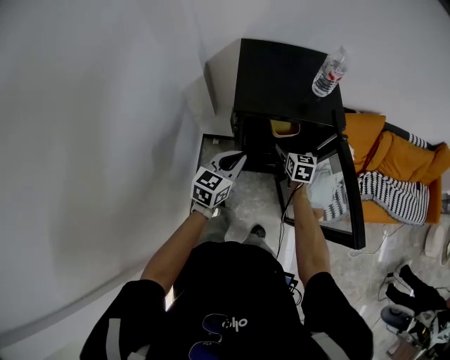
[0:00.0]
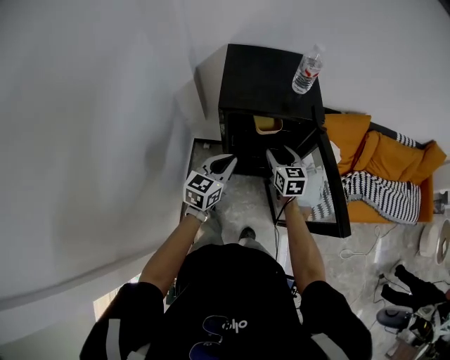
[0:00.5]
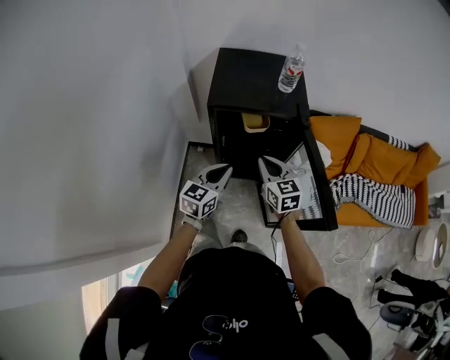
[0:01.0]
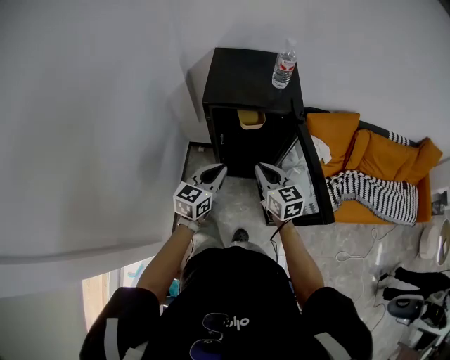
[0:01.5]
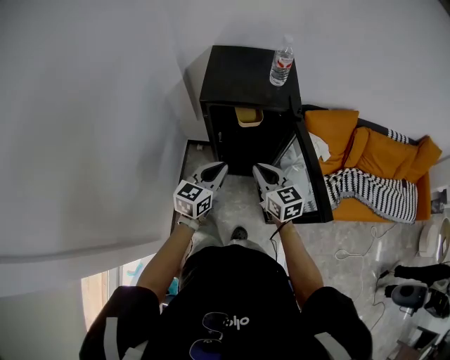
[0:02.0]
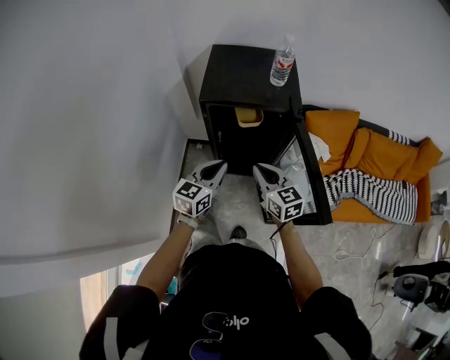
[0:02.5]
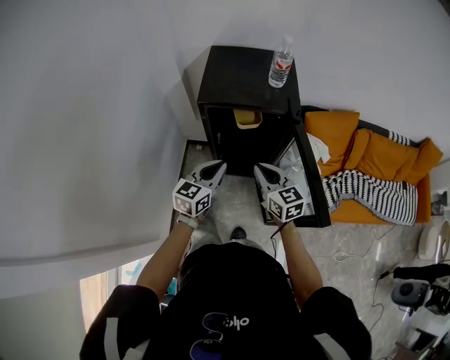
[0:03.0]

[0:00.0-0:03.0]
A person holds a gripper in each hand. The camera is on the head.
0:00.0 to 0:01.5: The right gripper goes some 25 cm backward and upward, swivels approximately 30 degrees, and closes its fingers. The left gripper travels backward and to the right by roughly 15 cm.
0:01.5 to 0:03.0: The grippers make only small movements.

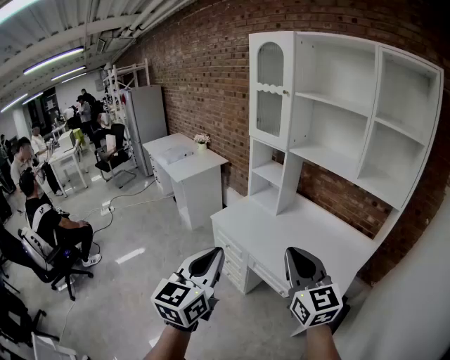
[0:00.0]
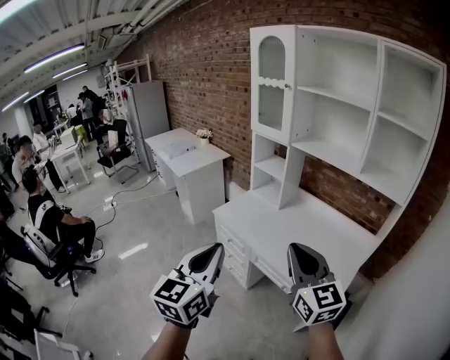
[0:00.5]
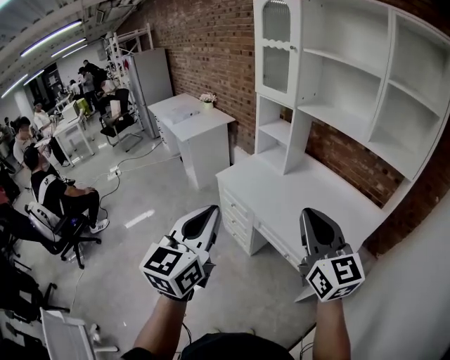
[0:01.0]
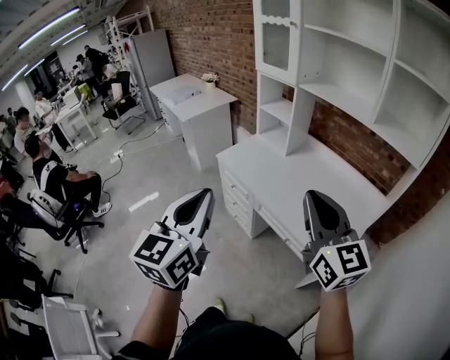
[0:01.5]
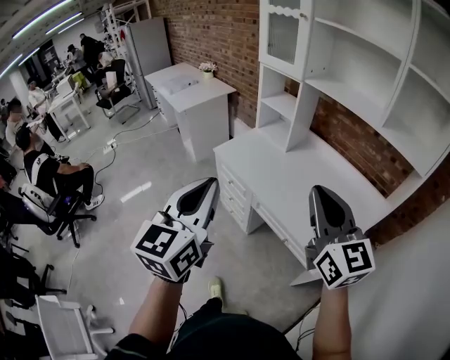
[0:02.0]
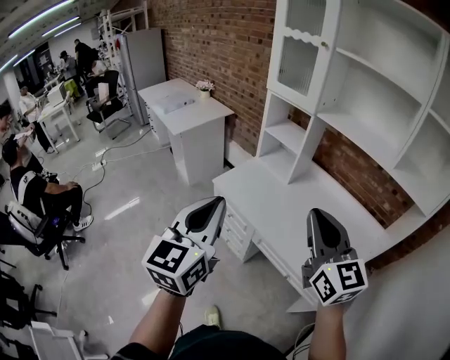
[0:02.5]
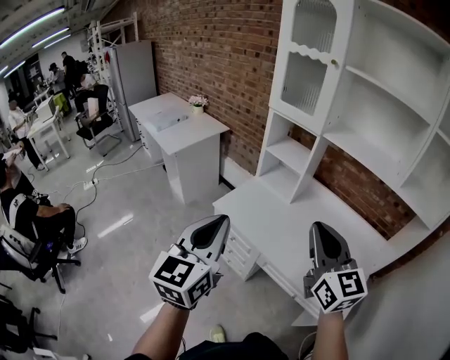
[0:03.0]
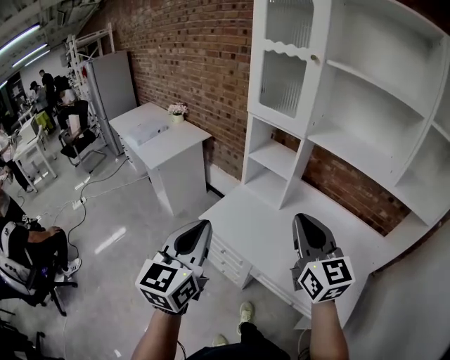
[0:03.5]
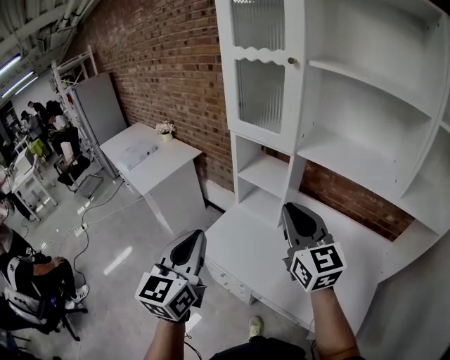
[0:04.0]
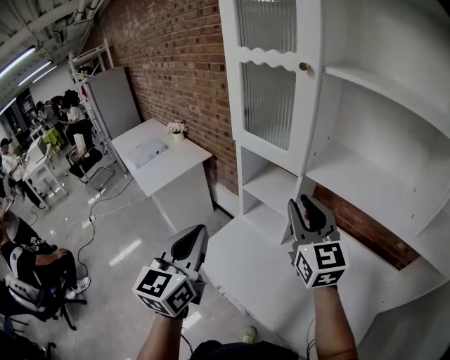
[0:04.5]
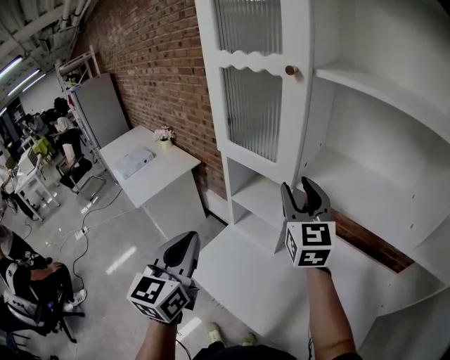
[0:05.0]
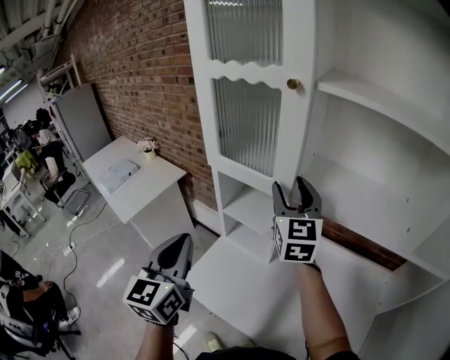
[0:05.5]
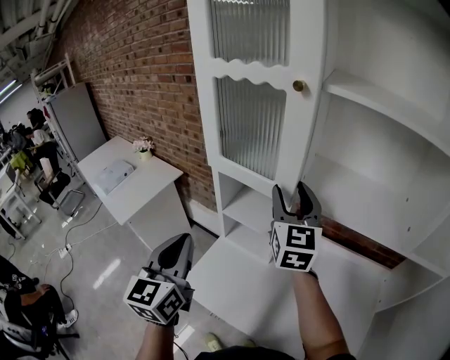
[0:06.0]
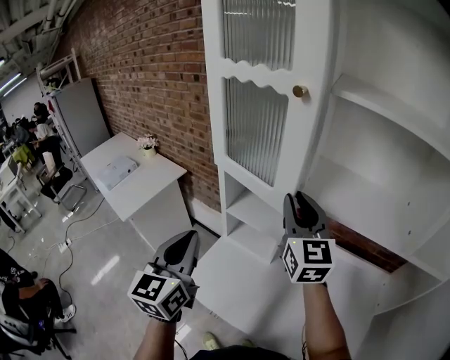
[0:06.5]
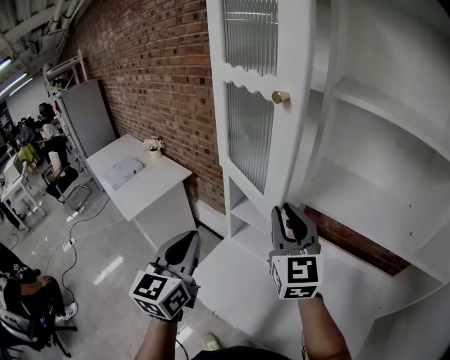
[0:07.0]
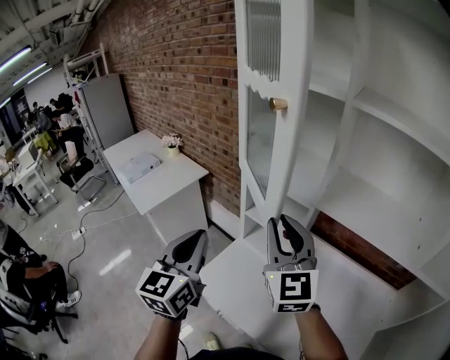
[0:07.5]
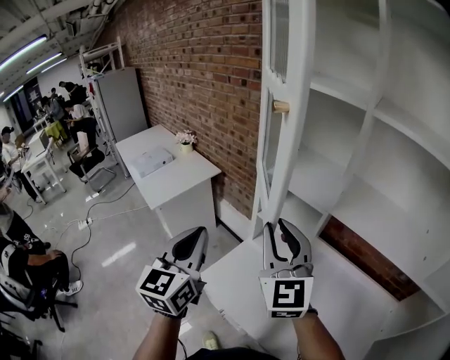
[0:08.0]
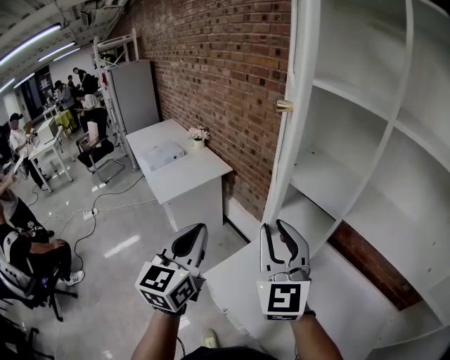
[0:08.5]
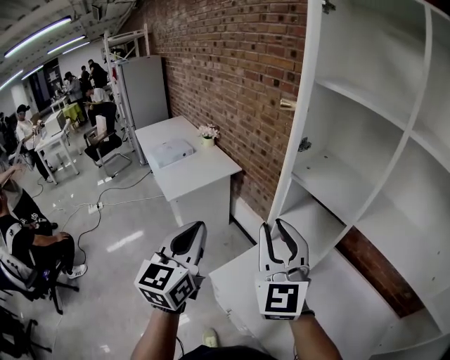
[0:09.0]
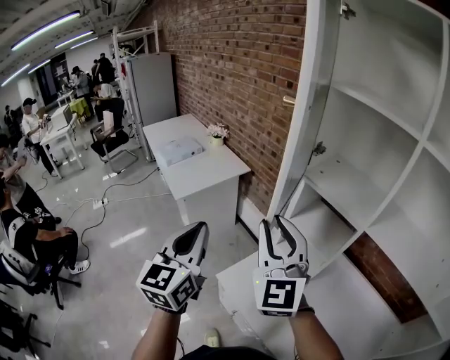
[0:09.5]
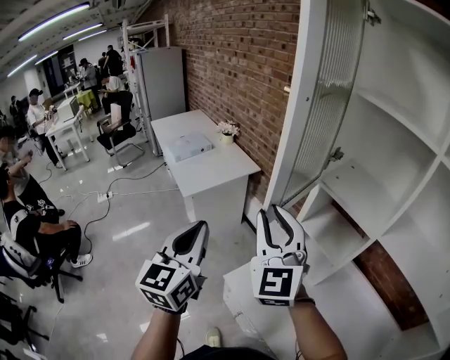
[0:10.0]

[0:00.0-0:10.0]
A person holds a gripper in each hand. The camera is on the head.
0:00.0 to 0:02.0: The right gripper changes place by about 5 cm.
0:02.0 to 0:04.0: Both grippers move forward, roughly 35 cm.
0:04.0 to 0:06.0: Both grippers move forward, some 25 cm. The right gripper turns by roughly 20 degrees, and opens up.
0:06.0 to 0:08.0: The right gripper moves to the left and backward, about 20 cm, changes its angle by some 20 degrees, and closes its fingers, while the left gripper heads to the left, covering about 5 cm.
0:08.0 to 0:10.0: Both grippers move to the left, roughly 15 cm.

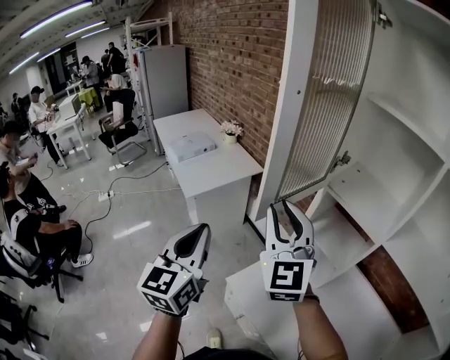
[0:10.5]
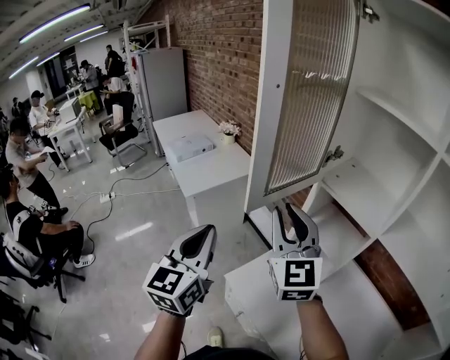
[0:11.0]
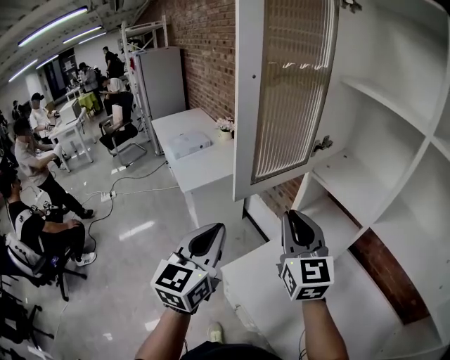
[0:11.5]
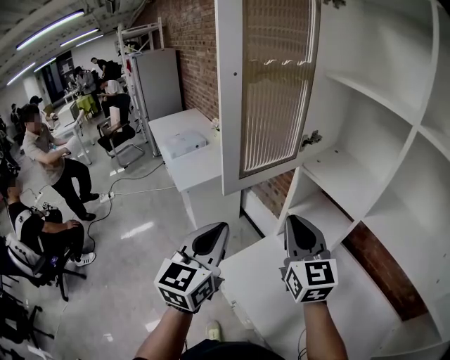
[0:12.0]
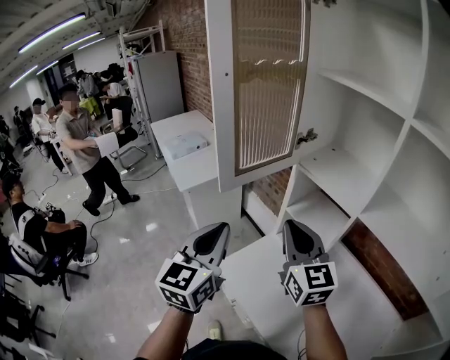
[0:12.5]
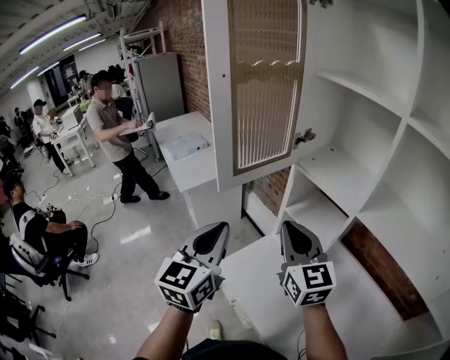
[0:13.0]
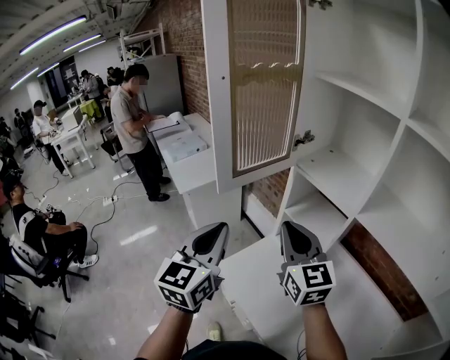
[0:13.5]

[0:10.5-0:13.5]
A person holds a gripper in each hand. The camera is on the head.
0:10.5 to 0:12.0: The right gripper is displaced to the right and backward by approximately 15 cm, and swivels approximately 20 degrees. Meanwhile the left gripper heads to the right, covering some 10 cm.
0:12.0 to 0:13.5: There are only small adjustments of the grippers.

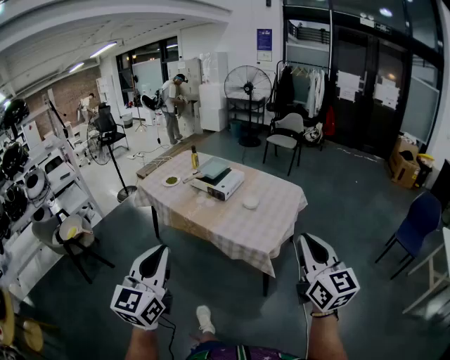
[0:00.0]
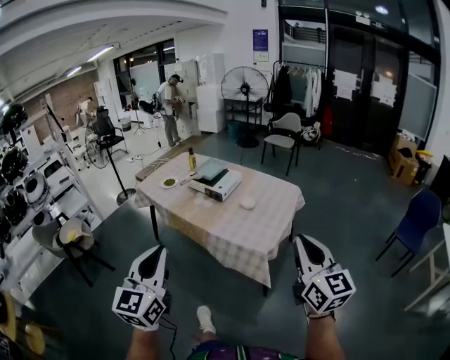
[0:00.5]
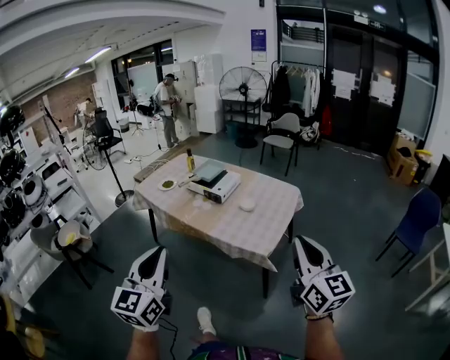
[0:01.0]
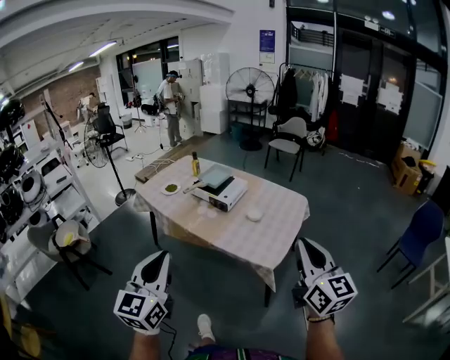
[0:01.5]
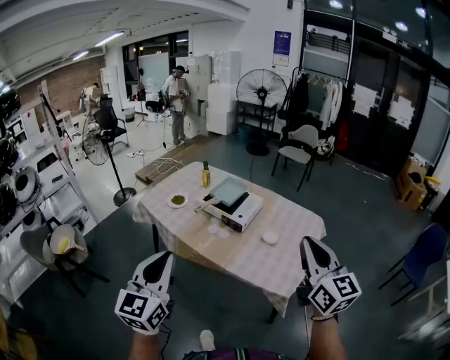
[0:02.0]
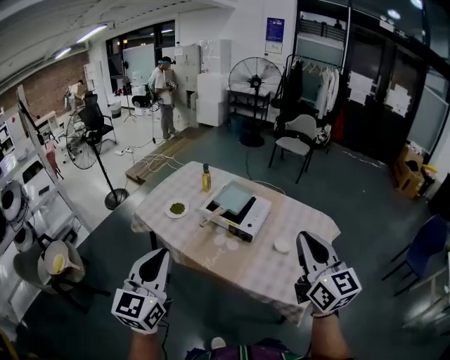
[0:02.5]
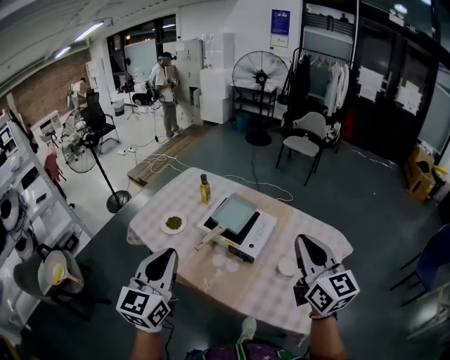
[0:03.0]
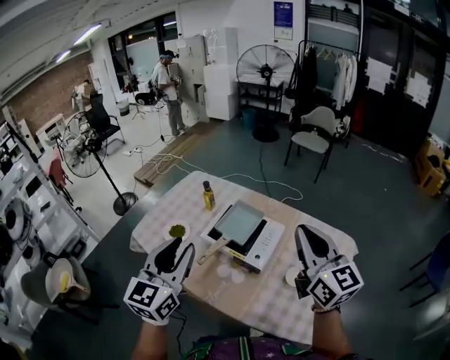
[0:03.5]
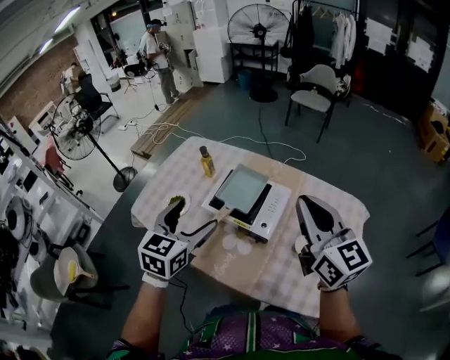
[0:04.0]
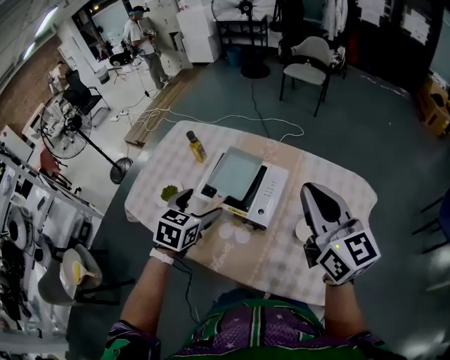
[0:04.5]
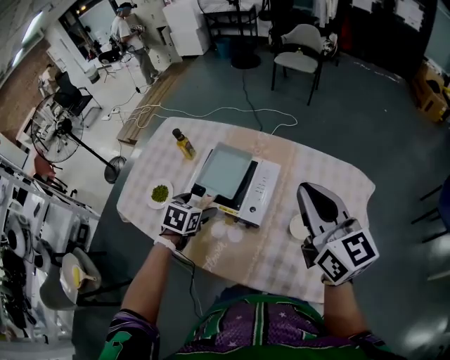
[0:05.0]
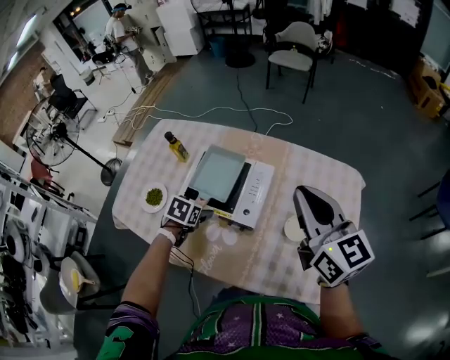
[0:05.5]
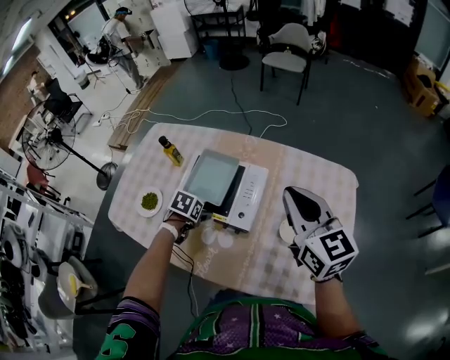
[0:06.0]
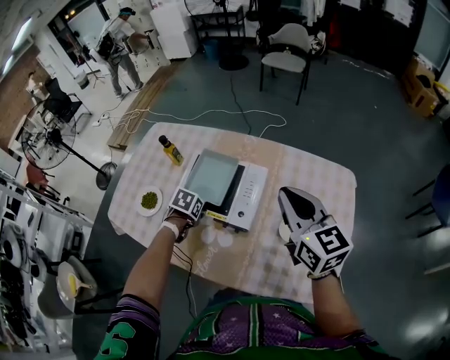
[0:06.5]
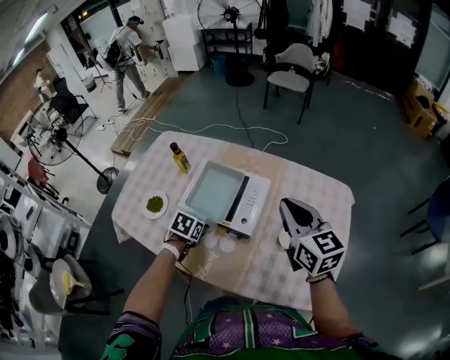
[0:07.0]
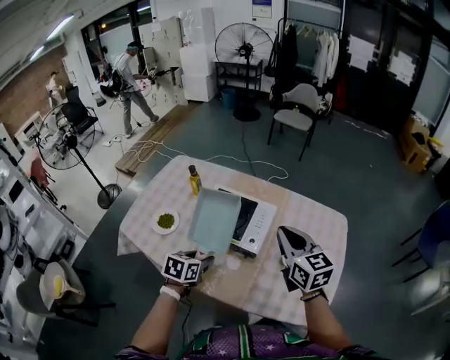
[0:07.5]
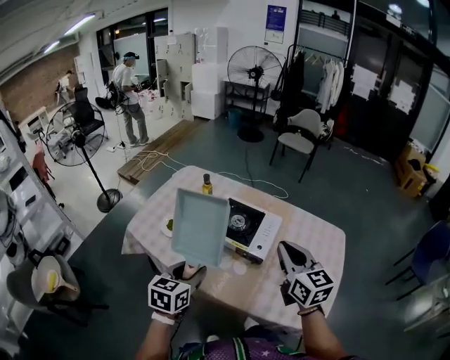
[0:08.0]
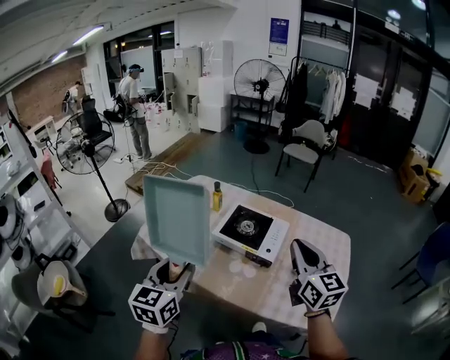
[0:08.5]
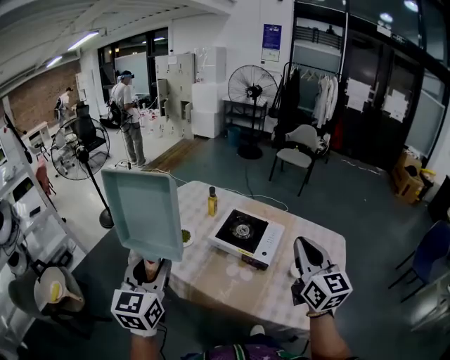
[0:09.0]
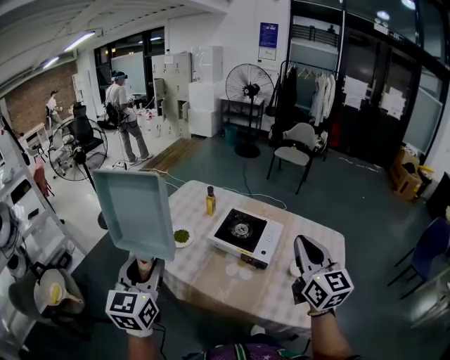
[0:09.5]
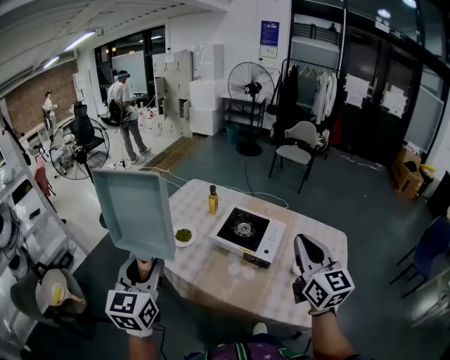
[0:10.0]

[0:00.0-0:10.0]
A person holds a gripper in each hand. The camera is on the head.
0:00.0 to 0:02.0: Both grippers travel together forward and to the left, about 30 cm.
0:02.0 to 0:04.0: The pair of grippers is taken forward, roughly 50 cm. The left gripper changes its angle by approximately 30 degrees, and opens its fingers.
0:04.0 to 0:06.0: The left gripper is displaced downward and forward by about 35 cm, and angles its fingers downward, by some 50 degrees. Meanwhile the right gripper travels downward, forward and to the right by some 15 cm.
0:06.0 to 0:08.0: The right gripper shifts by some 20 cm, while the left gripper moves some 35 cm, points its fingers some 50 degrees further upward, and closes up.
0:08.0 to 0:10.0: The left gripper shifts about 20 cm upward and to the left, and swivels some 30 degrees. The right gripper shifts some 10 cm upward.
